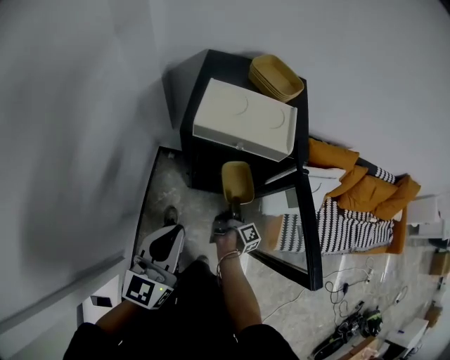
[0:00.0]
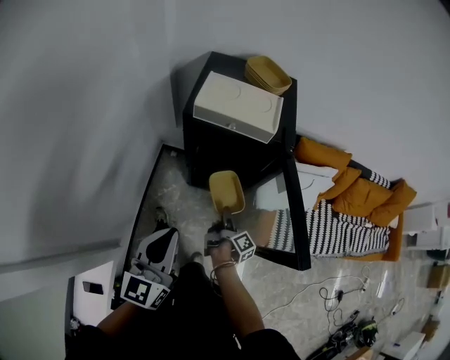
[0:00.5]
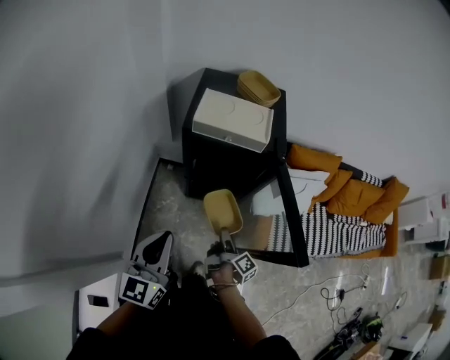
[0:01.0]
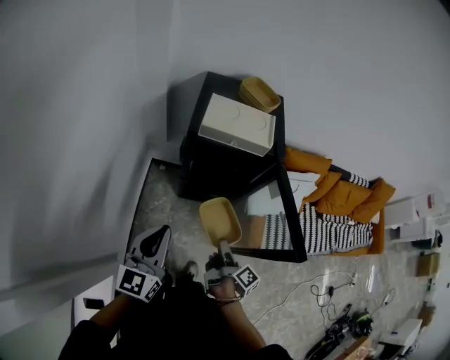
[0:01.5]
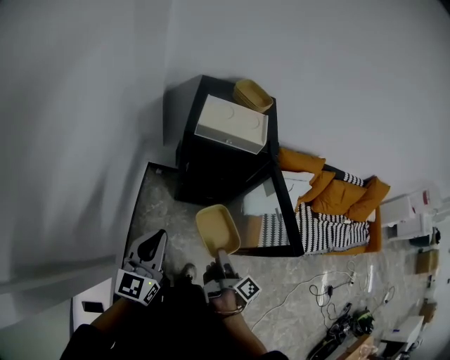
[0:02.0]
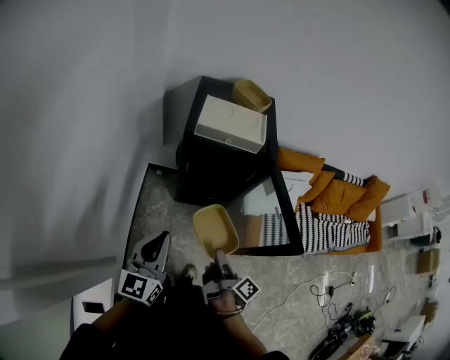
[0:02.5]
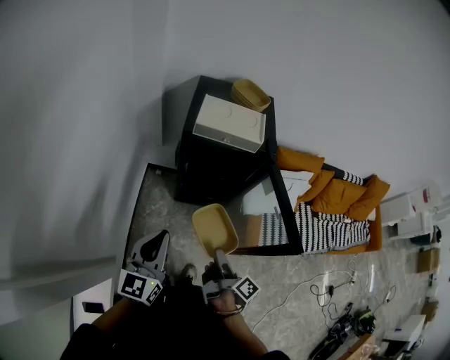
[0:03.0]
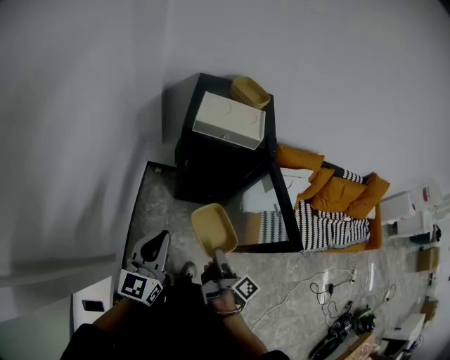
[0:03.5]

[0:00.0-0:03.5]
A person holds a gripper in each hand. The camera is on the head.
0:00.0 to 0:02.0: The right gripper is displaced backward and upward by about 35 cm; the left gripper moves backward, roughly 15 cm.
0:02.0 to 0:03.5: There are only small adjustments of the grippers.

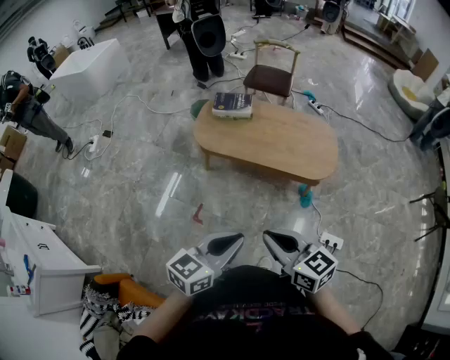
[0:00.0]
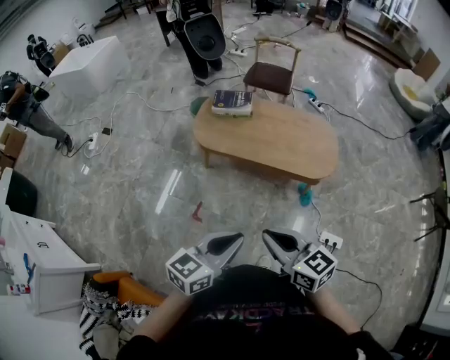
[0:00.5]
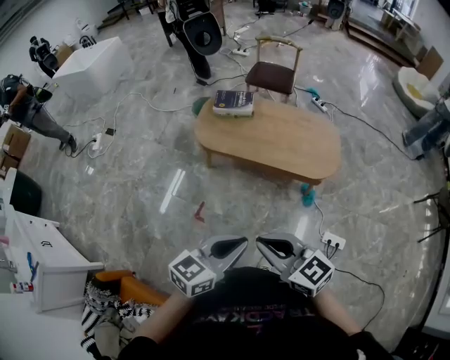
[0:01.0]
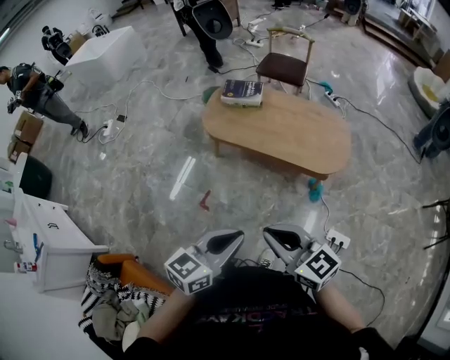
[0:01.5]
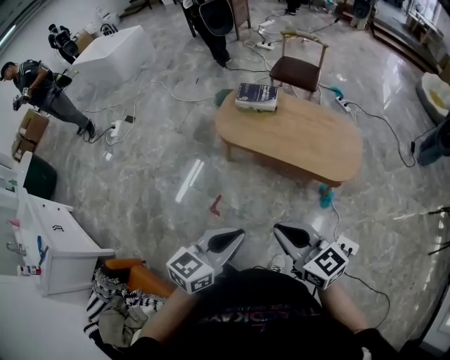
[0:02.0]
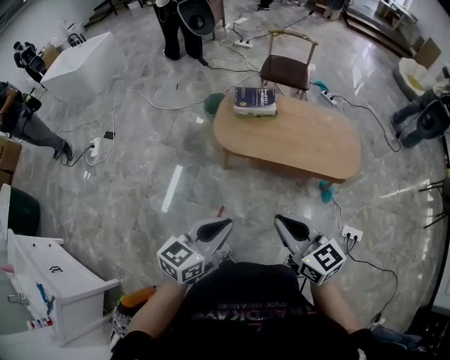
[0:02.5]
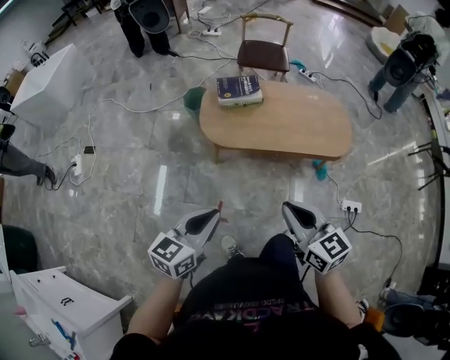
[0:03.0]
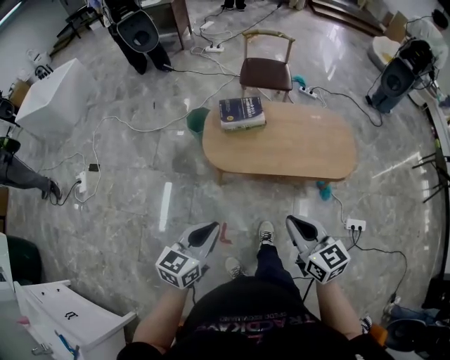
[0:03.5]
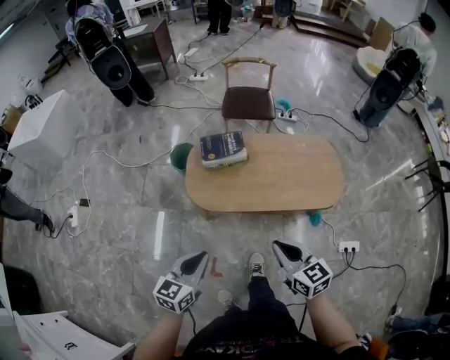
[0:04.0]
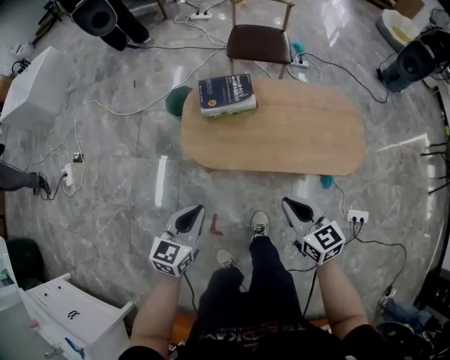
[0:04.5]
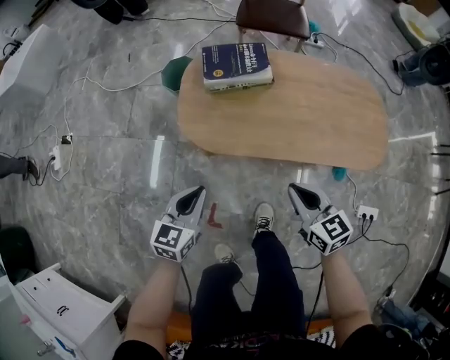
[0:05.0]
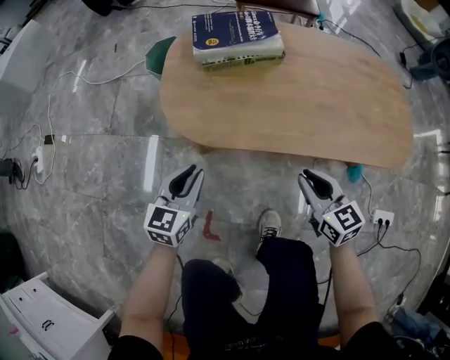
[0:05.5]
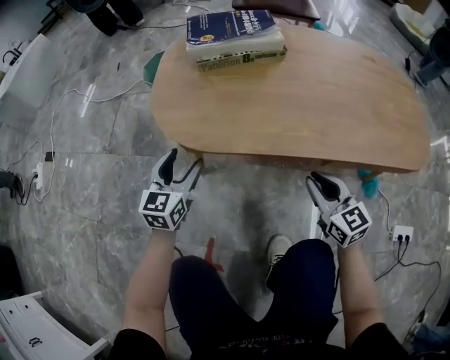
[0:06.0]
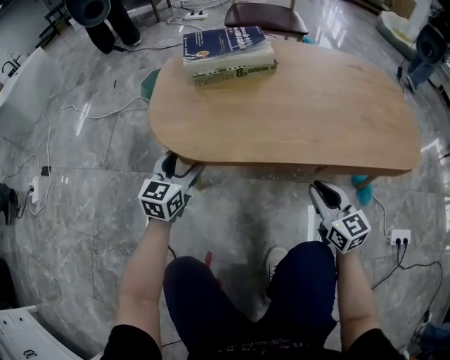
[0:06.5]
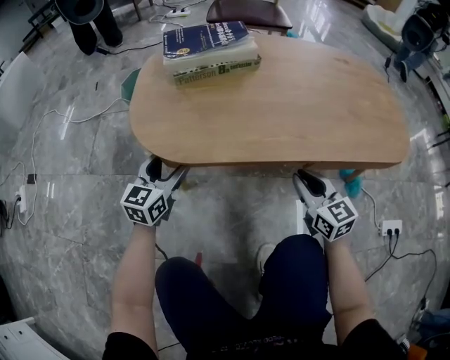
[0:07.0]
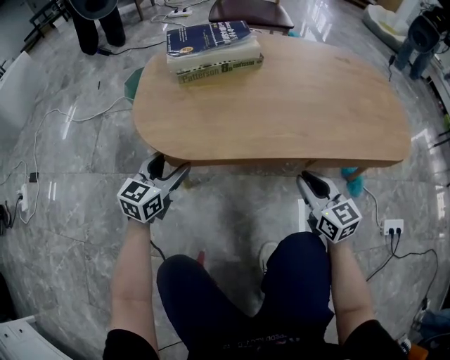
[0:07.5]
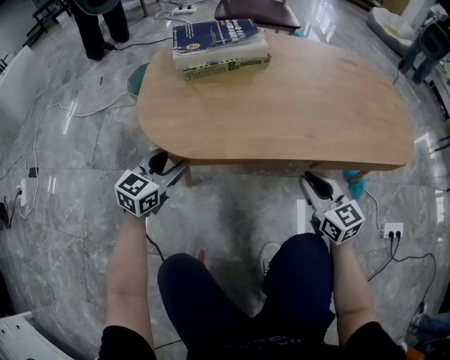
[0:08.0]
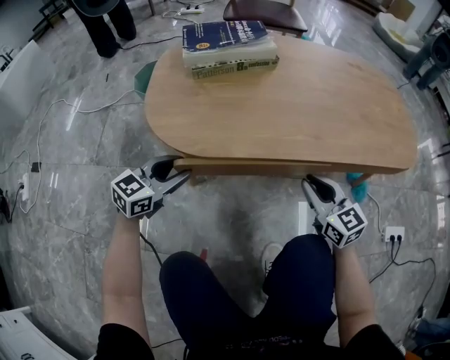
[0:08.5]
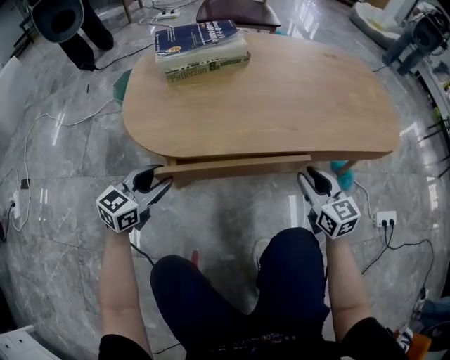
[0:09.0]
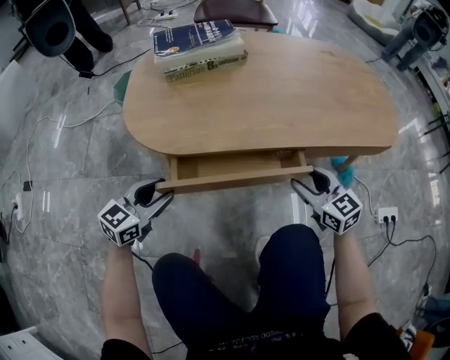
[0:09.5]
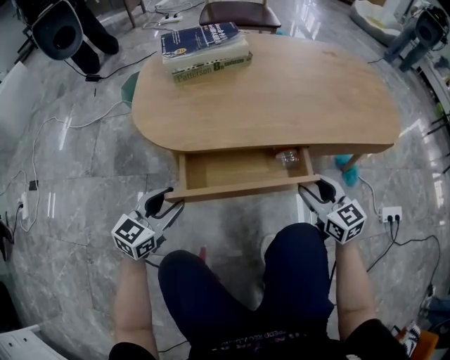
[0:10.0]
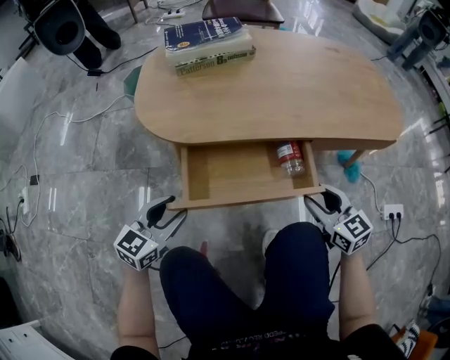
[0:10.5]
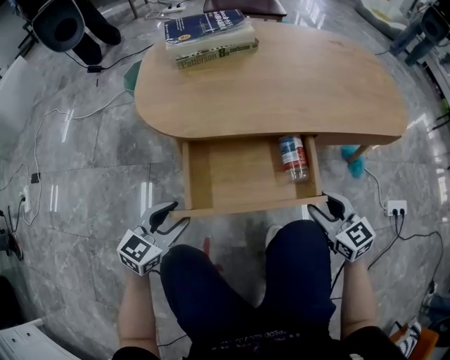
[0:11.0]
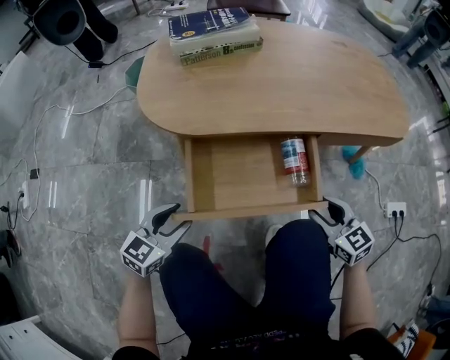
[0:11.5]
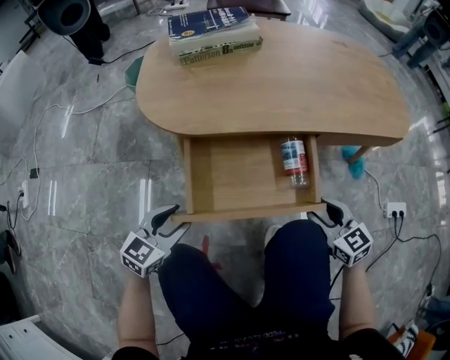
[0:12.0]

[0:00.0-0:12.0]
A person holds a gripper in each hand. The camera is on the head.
0:00.0 to 0:02.0: The grippers make only small movements.
0:02.0 to 0:04.0: The left gripper goes about 40 cm to the left and forward. Meanwhile the right gripper travels forward and to the left by some 25 cm, and rotates roughly 30 degrees.
0:04.0 to 0:06.0: The left gripper shifts approximately 60 cm downward and forward, and opens its fingers, while the right gripper goes approximately 60 cm downward.
0:06.0 to 0:08.0: The left gripper rotates about 20 degrees.
0:08.0 to 0:10.0: The right gripper shifts some 5 cm backward, and opens its fingers. The left gripper moves backward, roughly 15 cm.
0:10.0 to 0:12.0: The grippers both shift backward by about 10 cm.

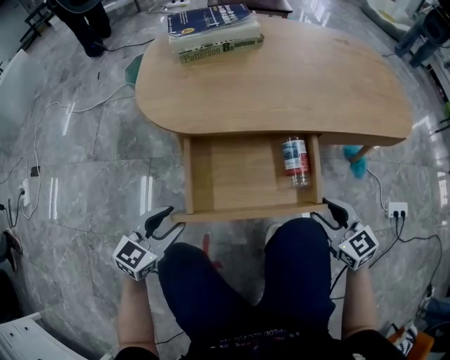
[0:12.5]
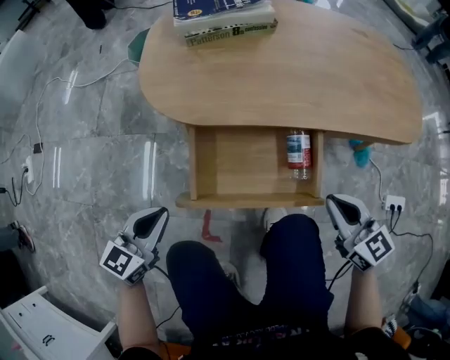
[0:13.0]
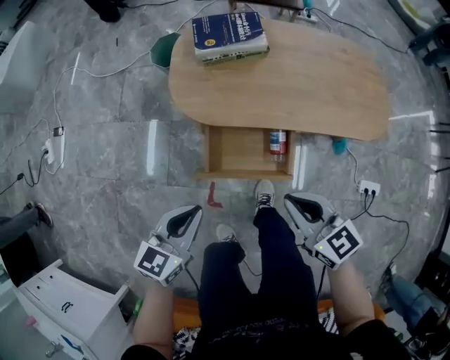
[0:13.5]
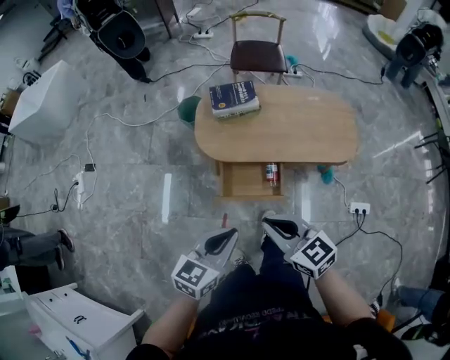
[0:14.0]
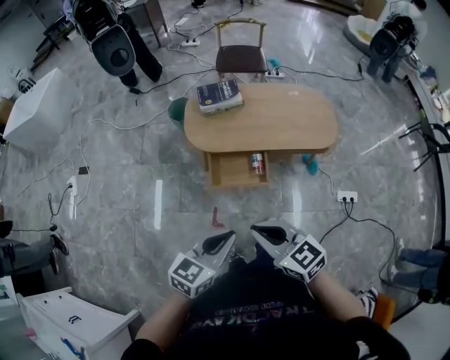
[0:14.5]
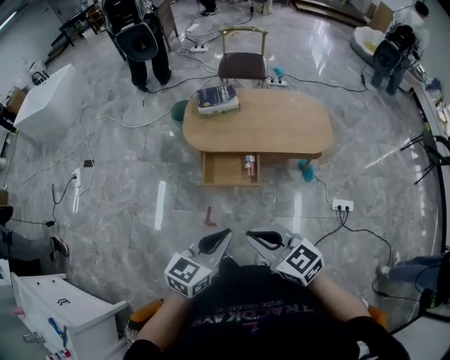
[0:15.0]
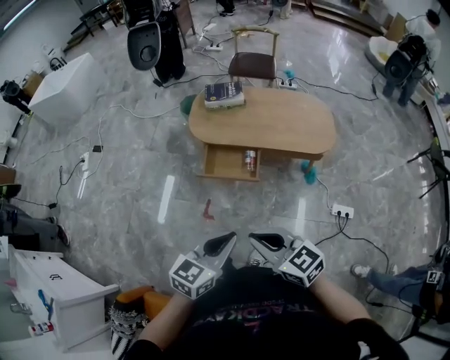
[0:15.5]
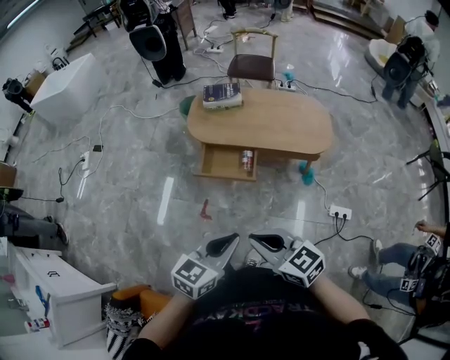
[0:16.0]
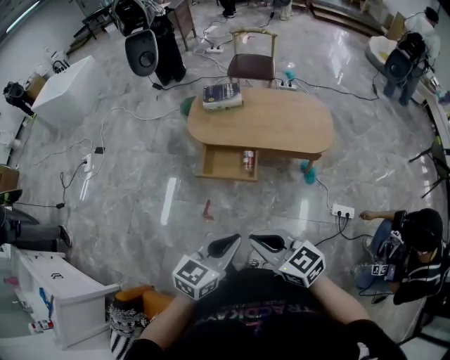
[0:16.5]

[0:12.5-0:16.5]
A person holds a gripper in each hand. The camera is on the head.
0:12.5 to 0:14.5: The left gripper is displaced upward and backward by some 70 cm, and closes its fingers. The right gripper goes some 60 cm upward, and closes its fingers.
0:14.5 to 0:16.5: The left gripper shifts about 20 cm to the right and backward, while the right gripper moves backward and to the right, about 20 cm.

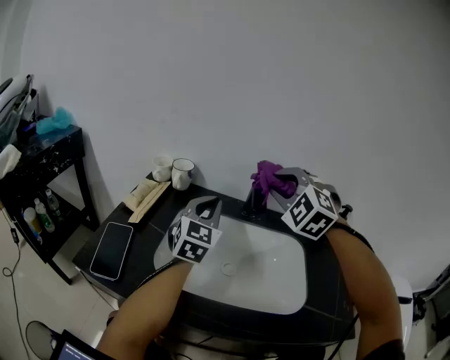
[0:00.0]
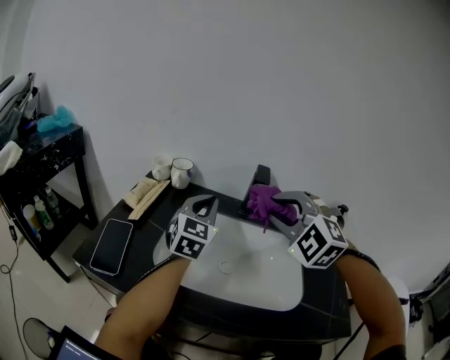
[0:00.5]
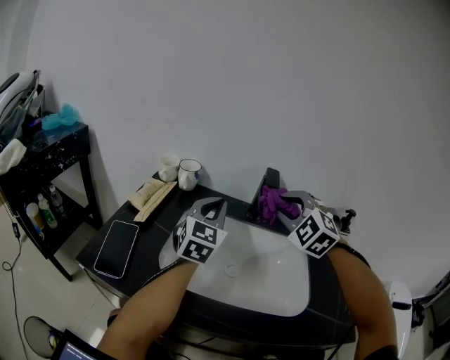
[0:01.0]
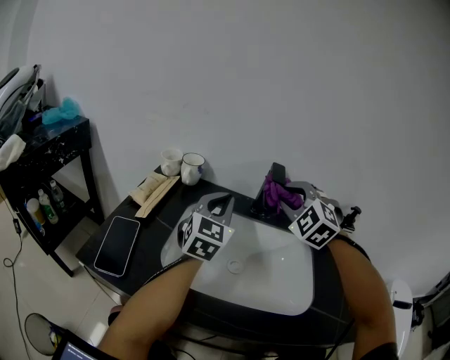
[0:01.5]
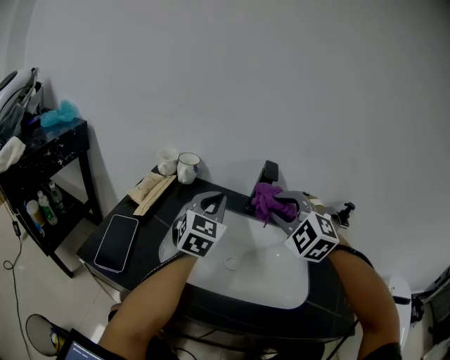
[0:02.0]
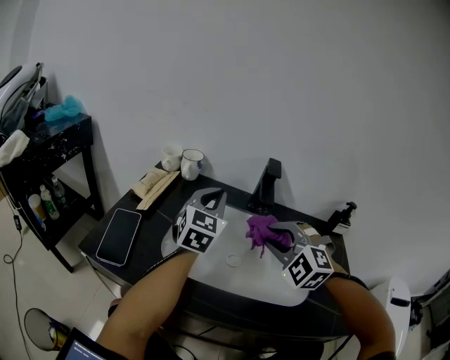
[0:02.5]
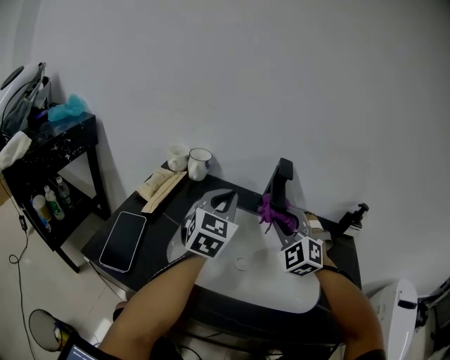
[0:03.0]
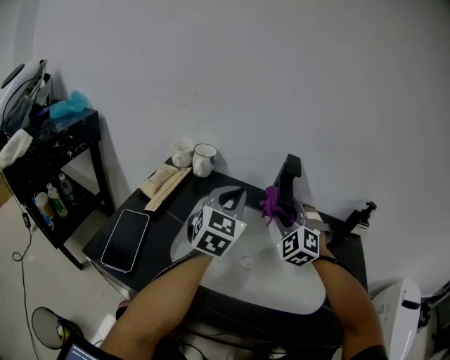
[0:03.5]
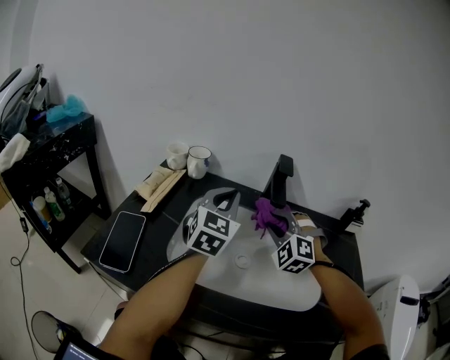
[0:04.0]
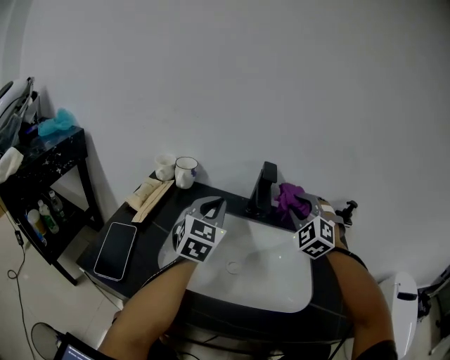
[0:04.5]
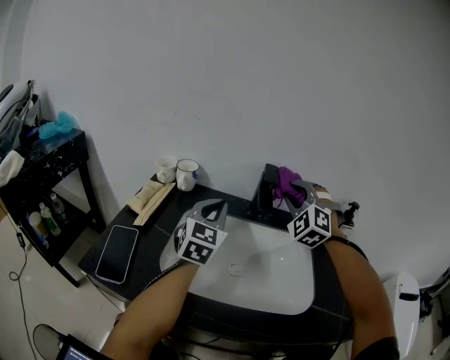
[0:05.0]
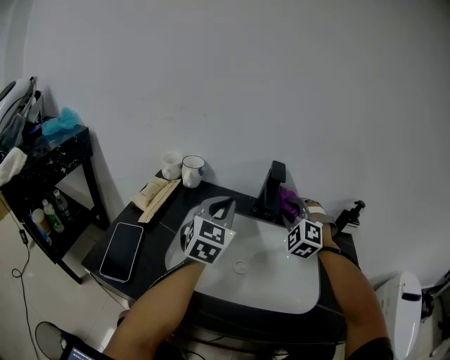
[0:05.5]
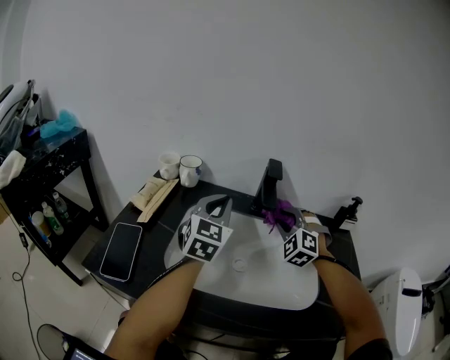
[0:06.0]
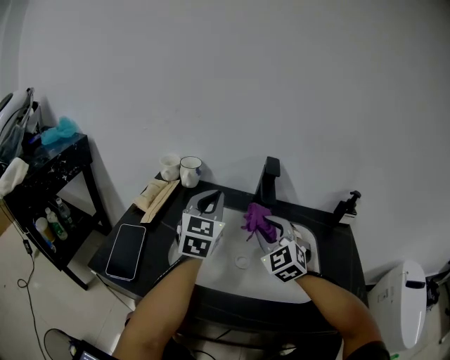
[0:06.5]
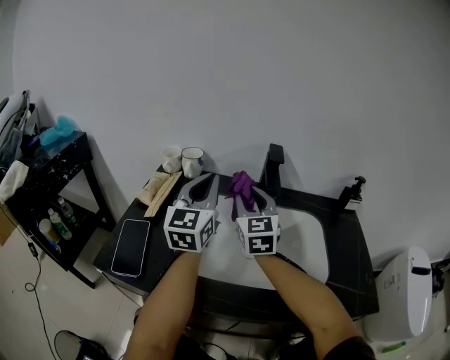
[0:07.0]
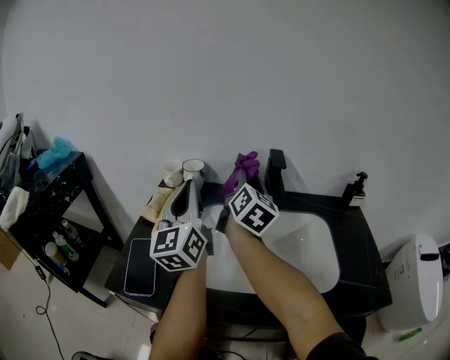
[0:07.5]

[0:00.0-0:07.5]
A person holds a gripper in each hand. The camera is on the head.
0:00.0 to 0:02.0: The right gripper moves forward and backward over about 10 cm, changing direction 2 times.
0:02.0 to 0:04.0: The right gripper heads downward, covering about 10 cm, and travels forward and back again, roughly 5 cm each way.
0:04.0 to 0:05.5: The right gripper heads forward, covering about 5 cm.
0:05.5 to 0:07.5: The left gripper is displaced to the left, upward and backward by roughly 15 cm, and turns by some 40 degrees, while the right gripper is displaced to the left and upward by about 15 cm, and twists about 110 degrees clockwise, seen from behind.
